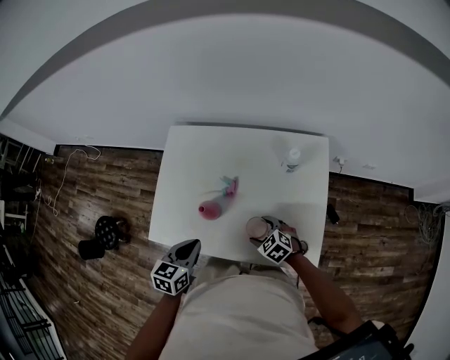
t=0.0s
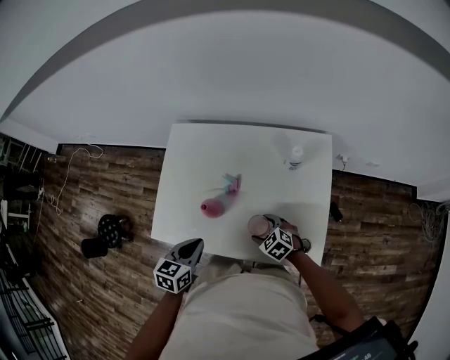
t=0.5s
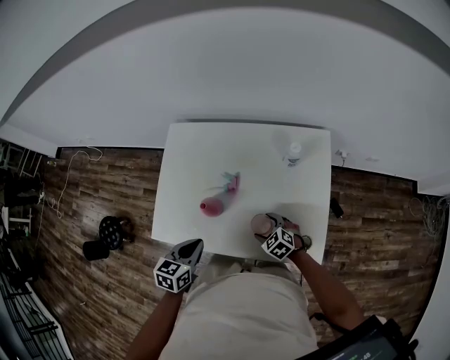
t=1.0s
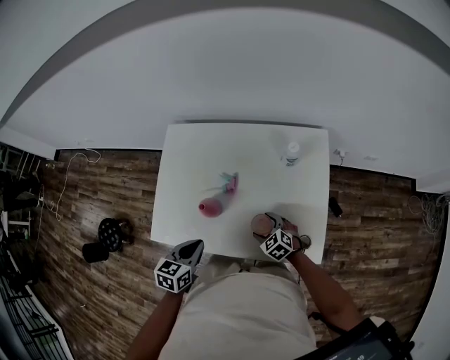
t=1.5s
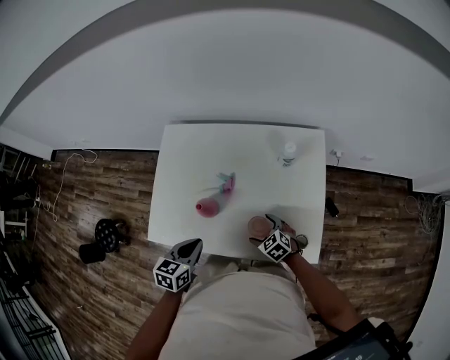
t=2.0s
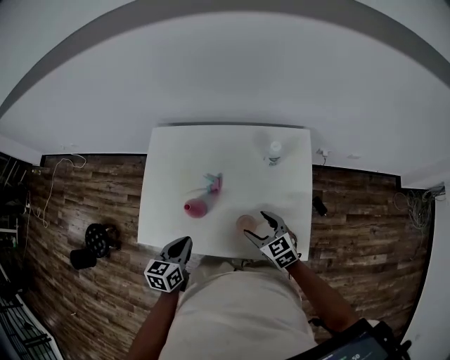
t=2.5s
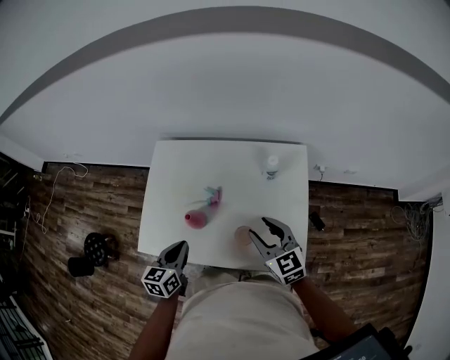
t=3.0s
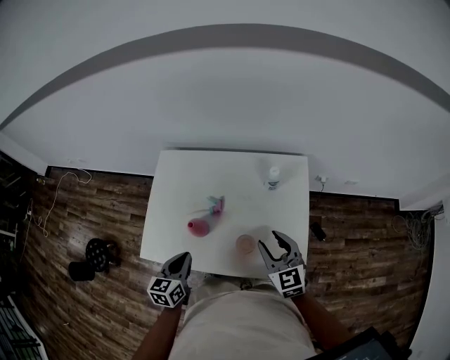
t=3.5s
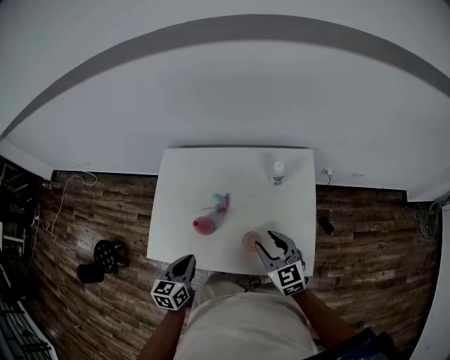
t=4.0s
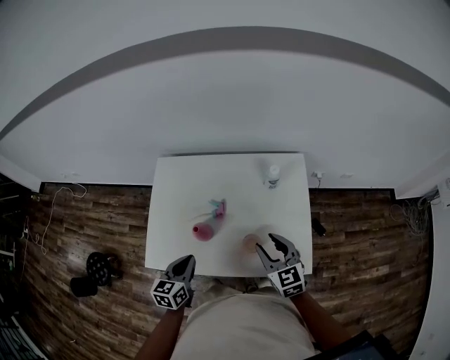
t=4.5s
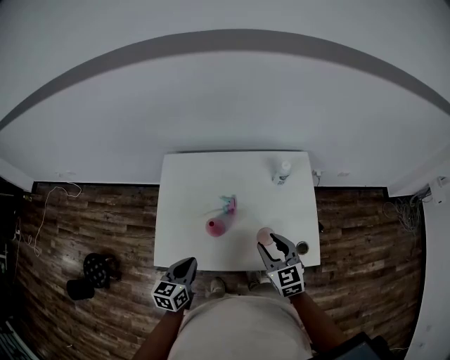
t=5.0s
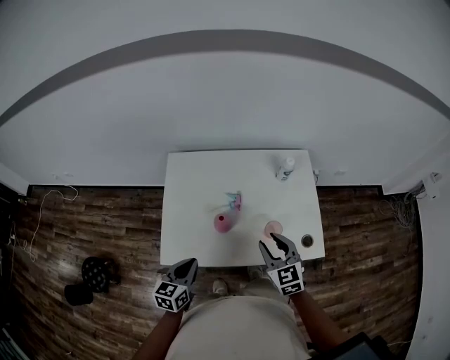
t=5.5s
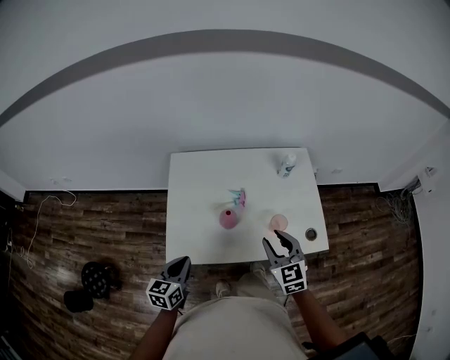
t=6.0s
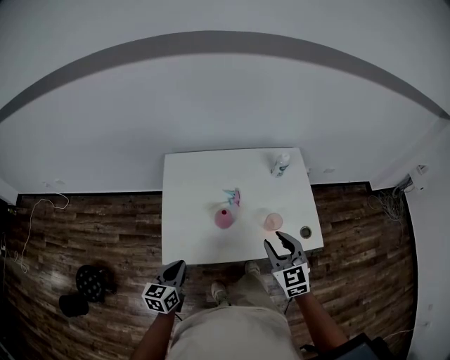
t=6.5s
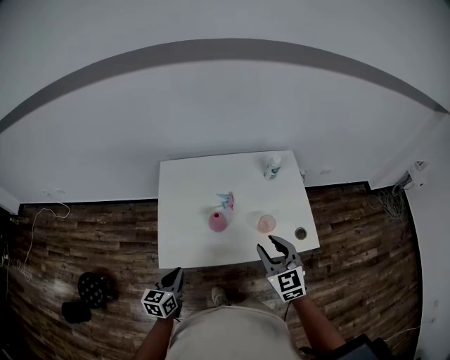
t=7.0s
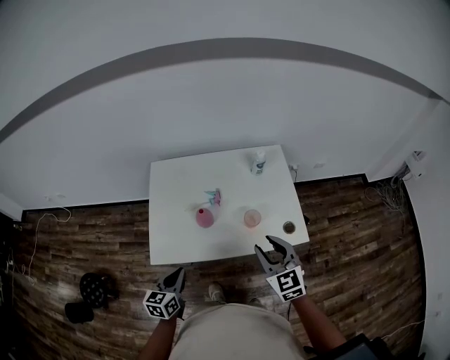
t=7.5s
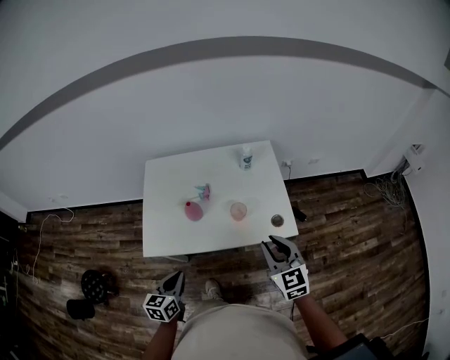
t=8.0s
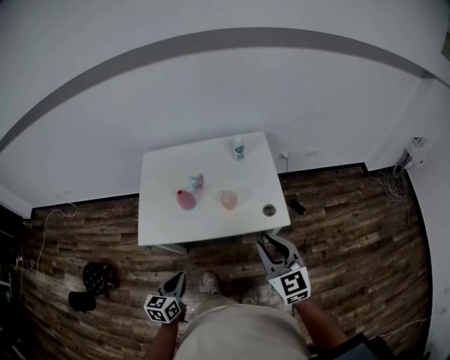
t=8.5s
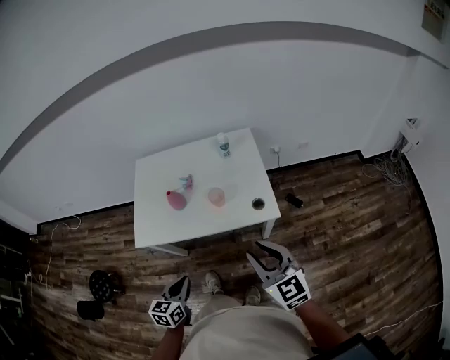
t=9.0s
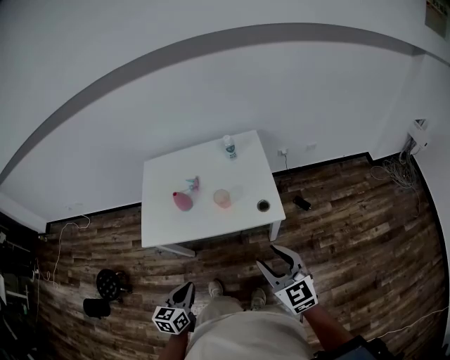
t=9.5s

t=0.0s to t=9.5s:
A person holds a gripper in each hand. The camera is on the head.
t=0.0s to t=2.0s: The grippers make only small movements.
t=2.0s to t=4.0s: The right gripper goes about 20 cm upward, changes its angle by about 30 degrees, and closes.
t=4.0s to t=5.5s: The left gripper heads to the left, covering about 15 cm. The right gripper shifts about 15 cm to the left and backward.
t=5.5s to t=7.5s: The right gripper moves backward, upward and to the right, some 15 cm. The left gripper heads backward, covering some 10 cm, and travels to the left and back again, roughly 5 cm each way.
t=7.5s to t=9.5s: The two grippers go roughly 25 cm backward and to the right.

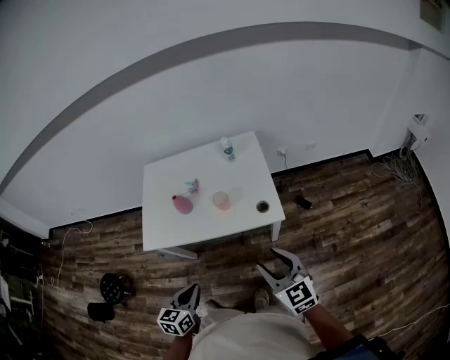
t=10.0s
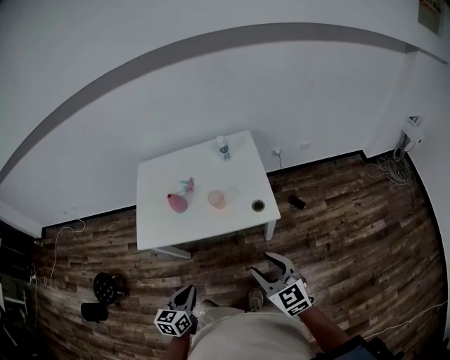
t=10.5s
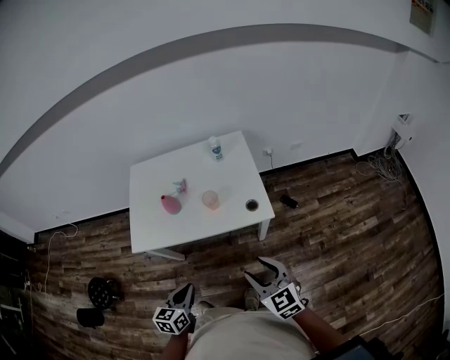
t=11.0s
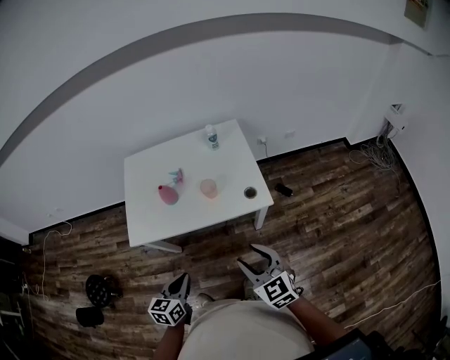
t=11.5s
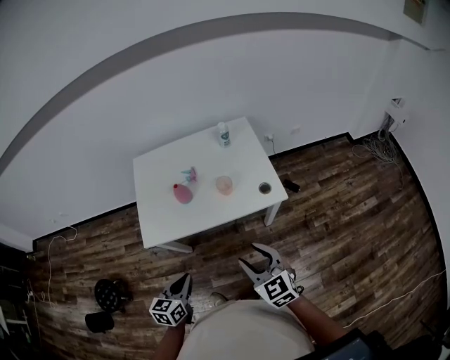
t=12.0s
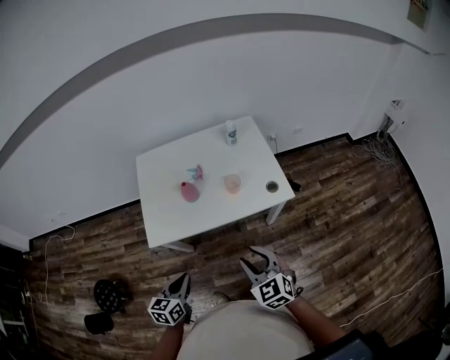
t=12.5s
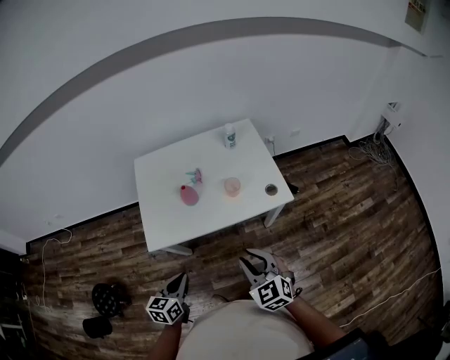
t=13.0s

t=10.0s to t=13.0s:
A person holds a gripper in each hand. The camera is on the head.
t=10.0s to t=11.5s: The right gripper travels to the left by roughly 10 cm.
t=11.5s to t=13.0s: The two grippers go some 15 cm to the left.

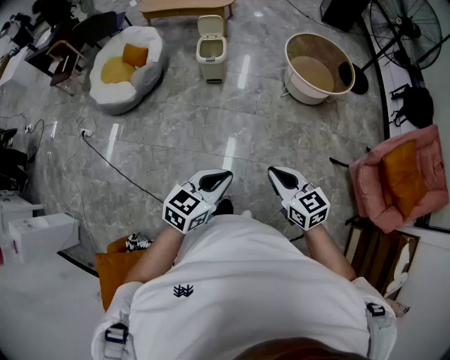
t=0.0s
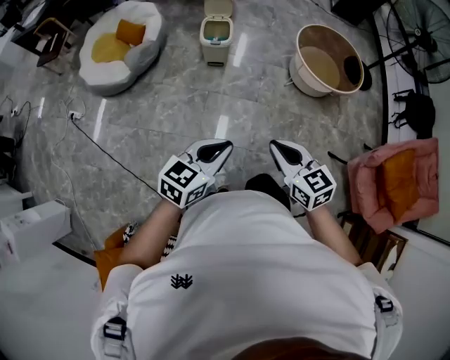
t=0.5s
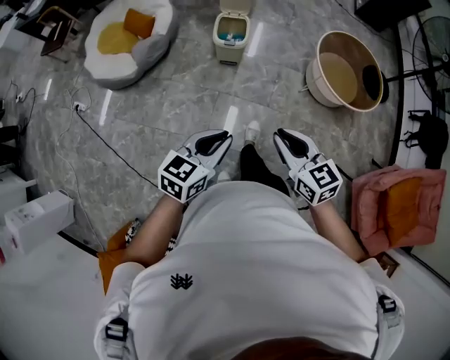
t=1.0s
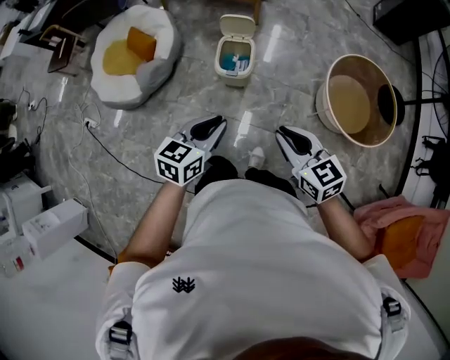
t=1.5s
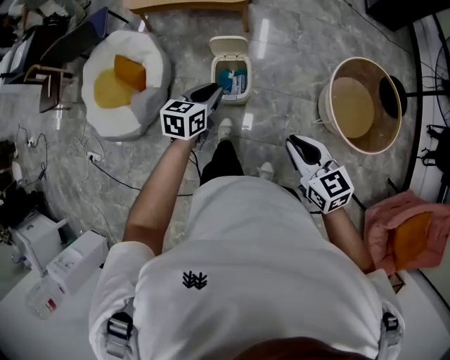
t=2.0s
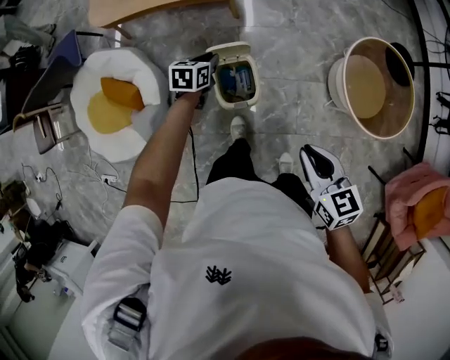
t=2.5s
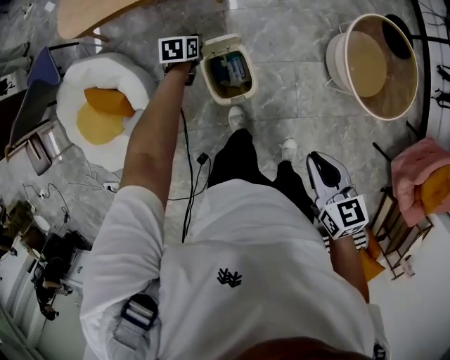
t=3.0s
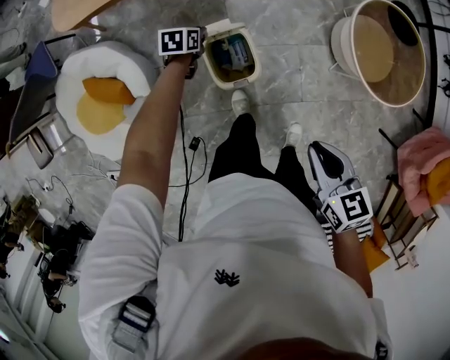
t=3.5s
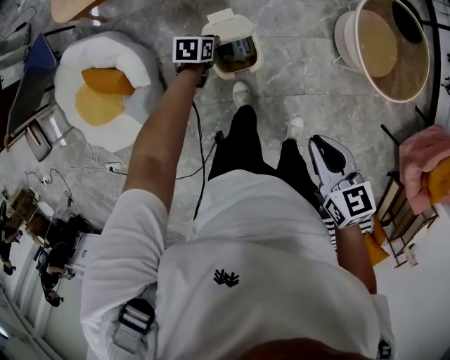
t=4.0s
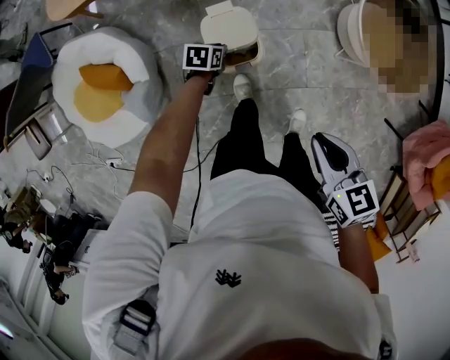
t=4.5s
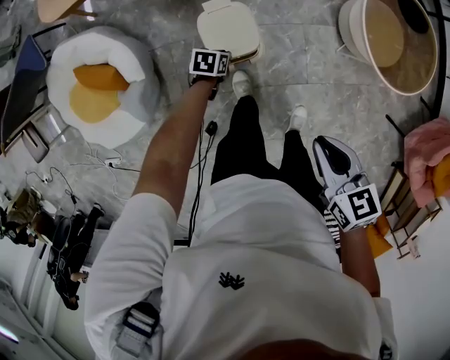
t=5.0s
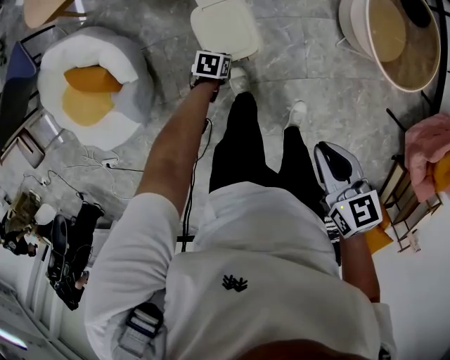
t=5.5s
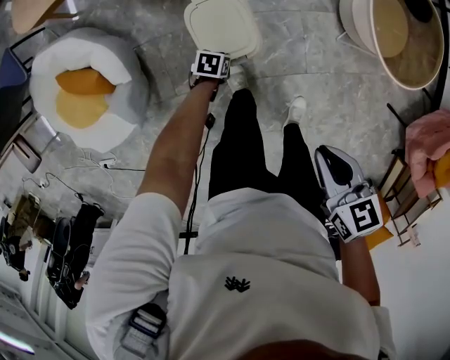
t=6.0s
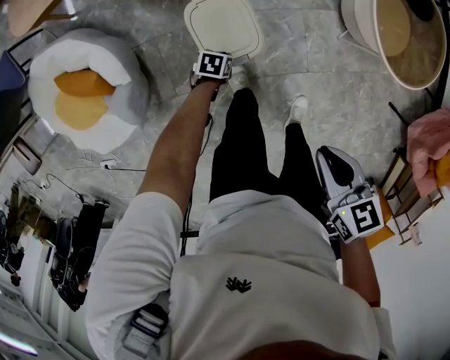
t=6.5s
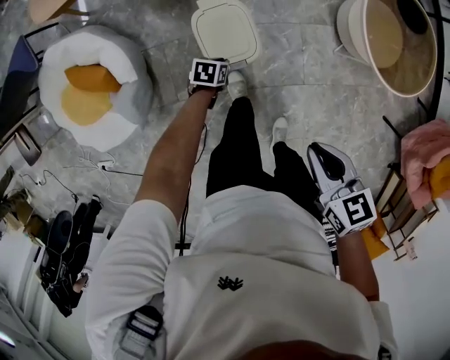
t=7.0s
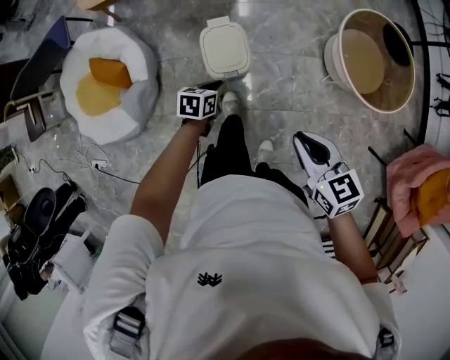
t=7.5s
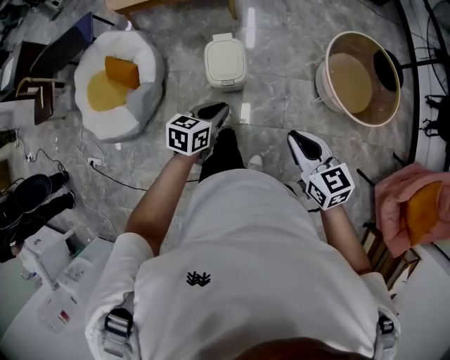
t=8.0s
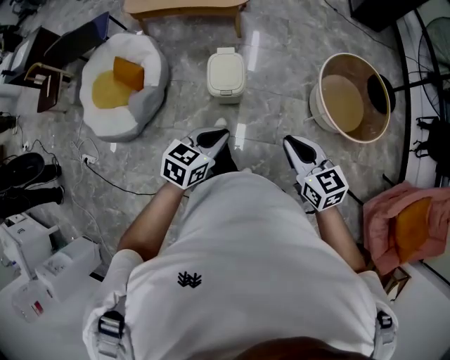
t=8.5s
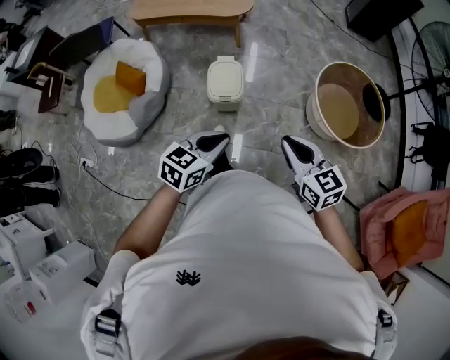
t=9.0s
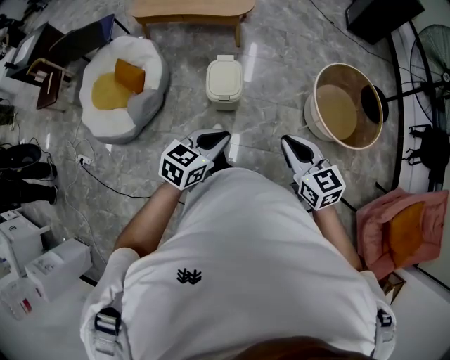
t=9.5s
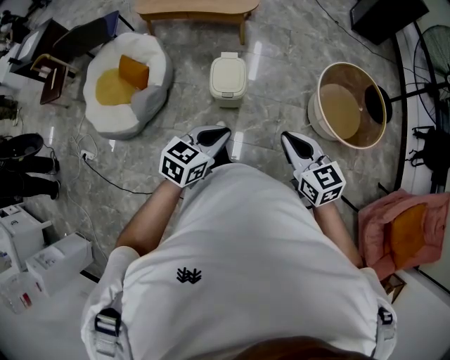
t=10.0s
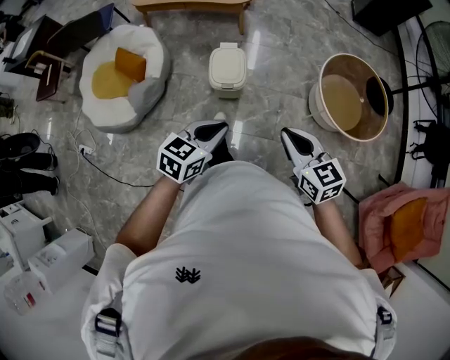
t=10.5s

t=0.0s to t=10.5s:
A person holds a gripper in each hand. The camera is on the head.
t=0.0s to t=2.0s: The pair of grippers is taken forward, some 80 cm.
t=2.0s to t=4.0s: The right gripper is displaced forward, to the left and downward by roughly 15 cm, and changes its angle by about 30 degrees. Meanwhile the left gripper moves downward and forward, roughly 35 cm, and changes its angle by some 30 degrees.
t=4.0s to t=6.5s: The left gripper moves downward, some 20 cm; the right gripper goes about 10 cm downward.
t=6.5s to t=8.5s: The left gripper is displaced upward by some 50 cm, and tips its fingers upward by approximately 30 degrees. Meanwhile the right gripper changes place by about 25 cm, and turns by roughly 40 degrees.
t=8.5s to t=10.5s: There are only small adjustments of the grippers.

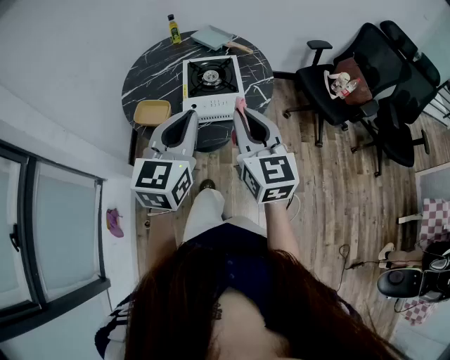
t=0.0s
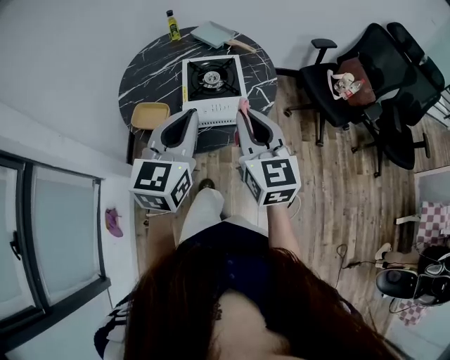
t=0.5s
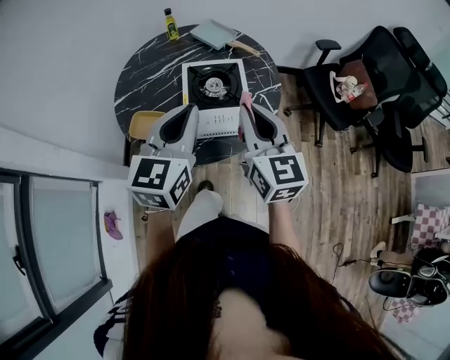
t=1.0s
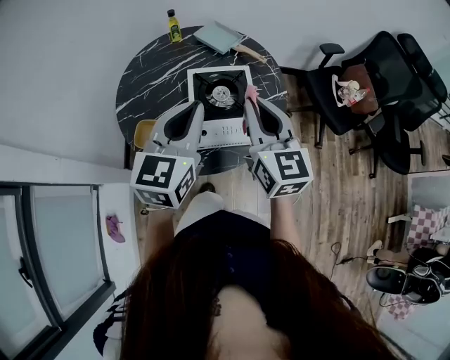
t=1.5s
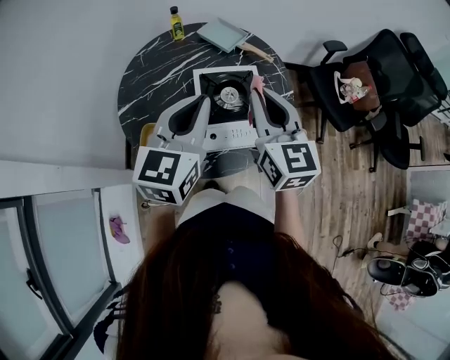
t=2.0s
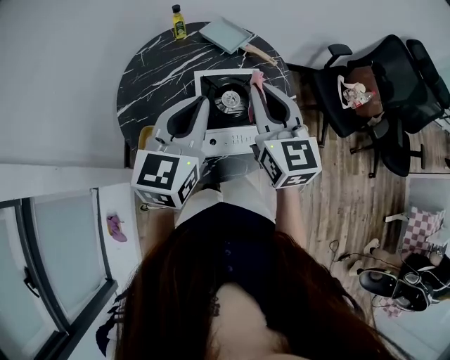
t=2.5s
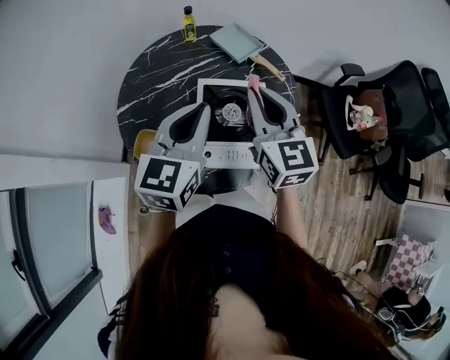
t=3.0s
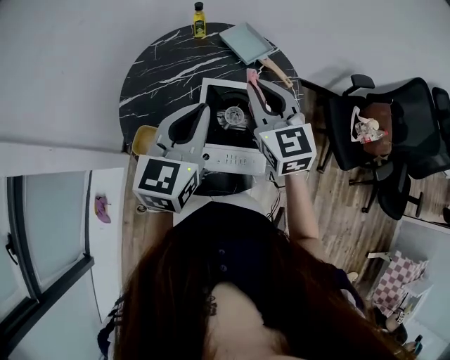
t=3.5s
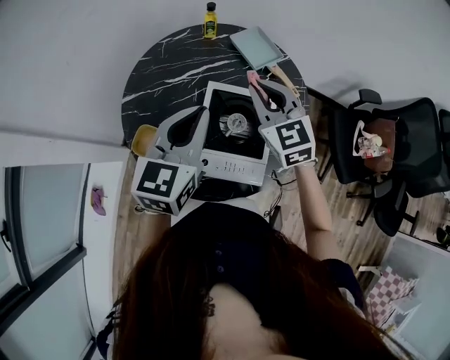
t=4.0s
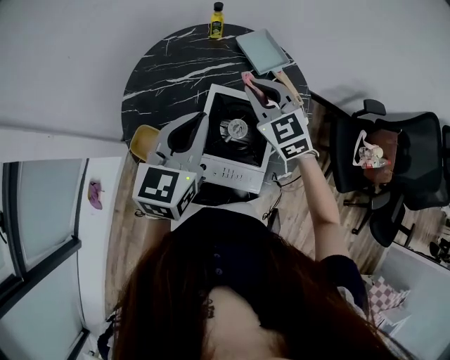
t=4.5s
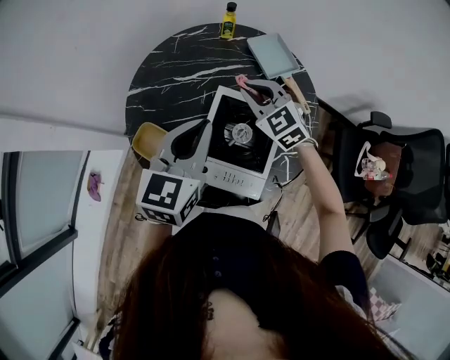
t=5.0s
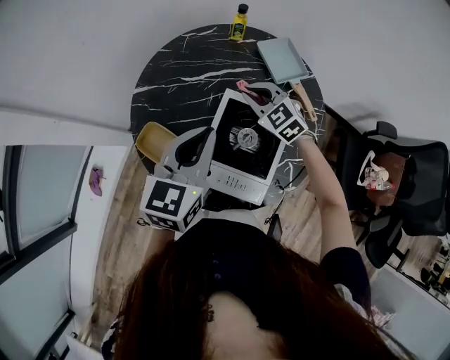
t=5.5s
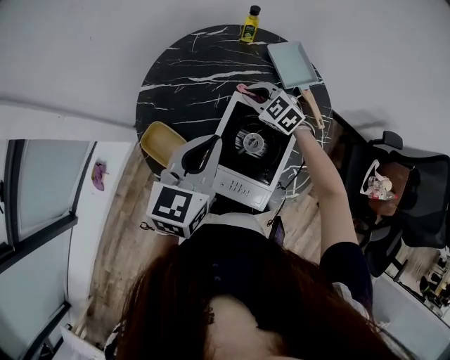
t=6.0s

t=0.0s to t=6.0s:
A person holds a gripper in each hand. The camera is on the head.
t=0.0s to t=2.0s: The left gripper goes some 25 cm forward and to the left, while the right gripper is displaced forward by about 25 cm.
t=2.0s to t=4.0s: The right gripper goes approximately 20 cm forward and downward, and turns by approximately 40 degrees. The left gripper travels forward by about 10 cm.
t=4.0s to t=6.0s: The right gripper shifts some 25 cm downward and forward, and changes its angle by roughly 40 degrees, while the left gripper moves downward, roughly 5 cm.
